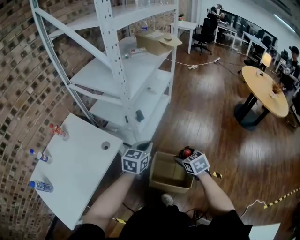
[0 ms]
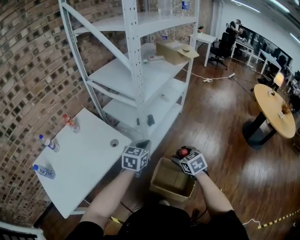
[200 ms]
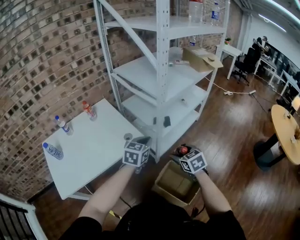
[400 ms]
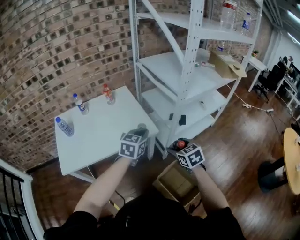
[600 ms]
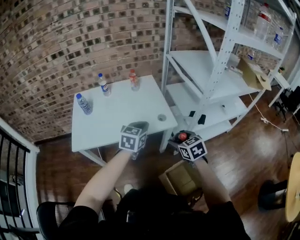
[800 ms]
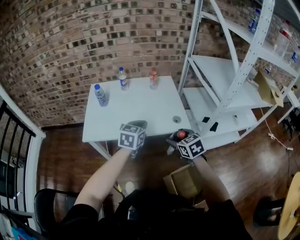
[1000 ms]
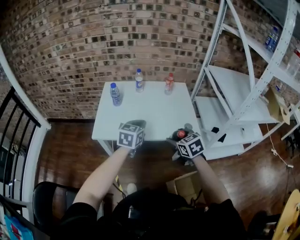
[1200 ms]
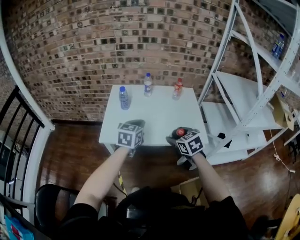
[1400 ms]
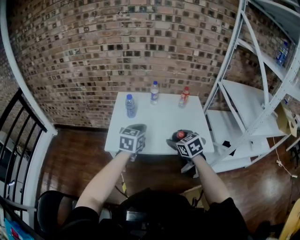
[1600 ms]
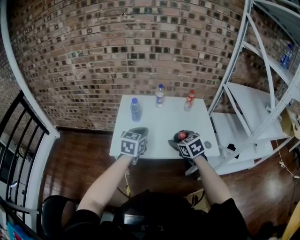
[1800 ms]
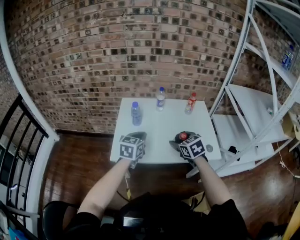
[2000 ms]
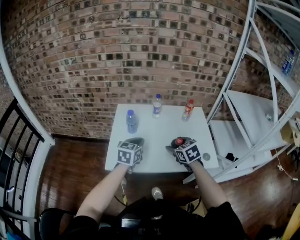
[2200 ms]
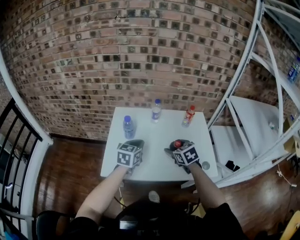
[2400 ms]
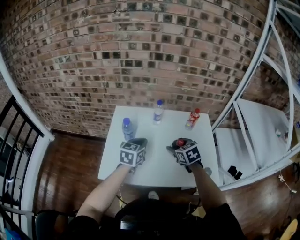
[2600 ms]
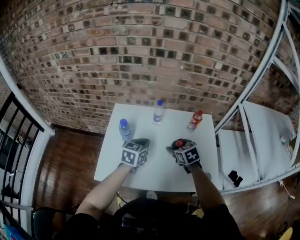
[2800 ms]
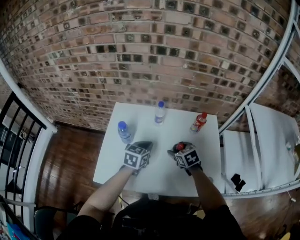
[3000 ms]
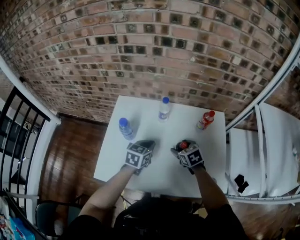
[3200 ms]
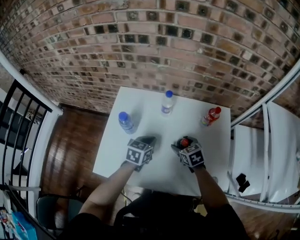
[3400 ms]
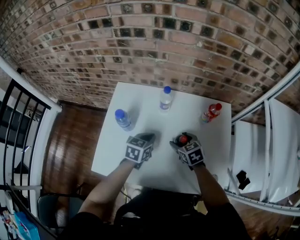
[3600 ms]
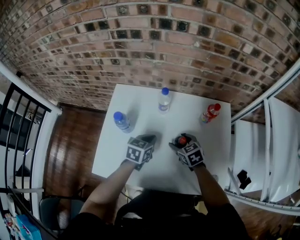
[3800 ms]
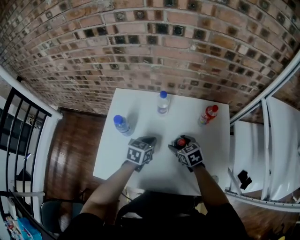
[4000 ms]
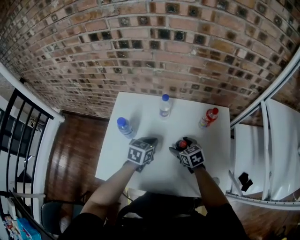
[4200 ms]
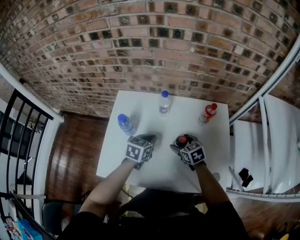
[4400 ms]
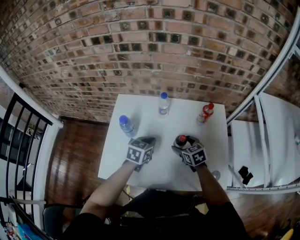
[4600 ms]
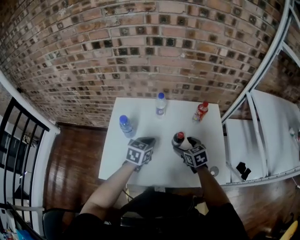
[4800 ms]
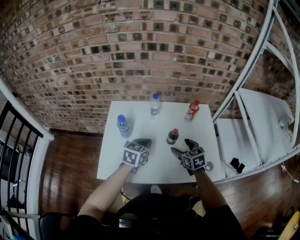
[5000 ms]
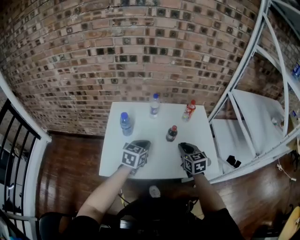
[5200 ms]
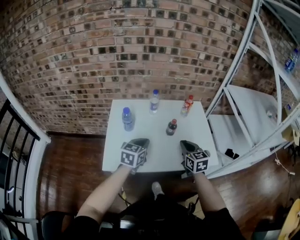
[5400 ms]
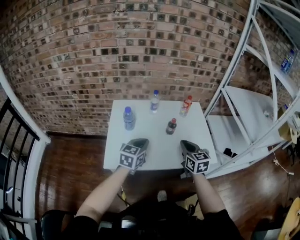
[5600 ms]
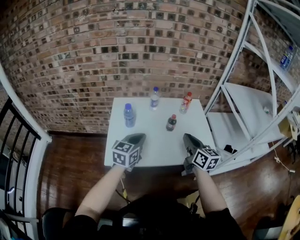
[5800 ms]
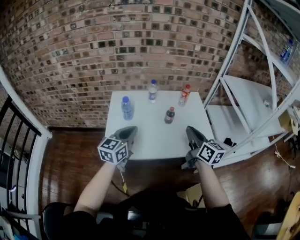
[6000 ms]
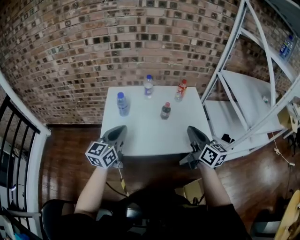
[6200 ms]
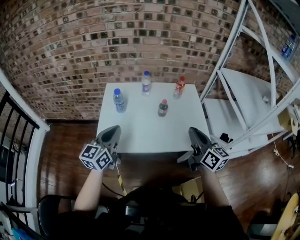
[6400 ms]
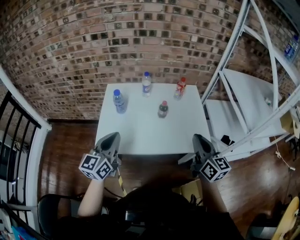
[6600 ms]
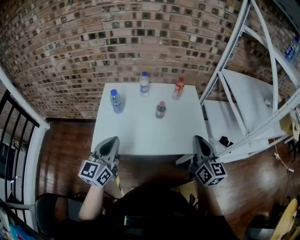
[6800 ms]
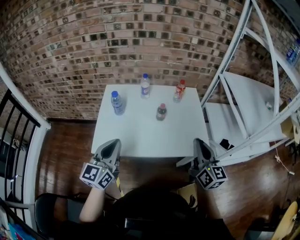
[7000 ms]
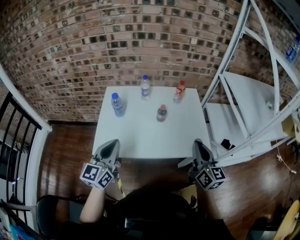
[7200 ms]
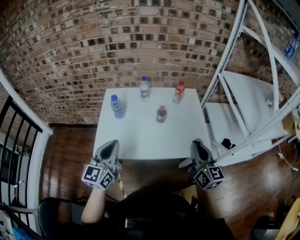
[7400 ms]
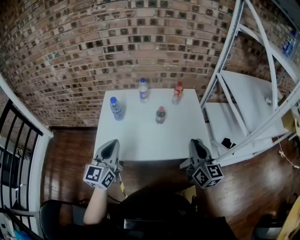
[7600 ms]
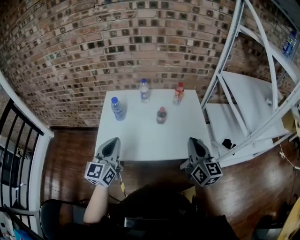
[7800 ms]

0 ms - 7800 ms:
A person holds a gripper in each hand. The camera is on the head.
0 ms - 1600 ms: Both grippers are carried approximately 60 cm. The left gripper turns by about 70 degrees; the right gripper turns by approximately 70 degrees.
1600 ms - 3200 ms: Both grippers travel together forward and downward, about 30 cm.
3200 ms - 4600 ms: The grippers make only small movements.
4600 ms - 6200 ms: The left gripper moves backward, upward and to the left, about 30 cm, and points its fingers some 30 degrees further upward; the right gripper moves backward and upward, about 35 cm, tilts its fingers approximately 40 degrees upward, and closes its fingers.
6200 ms - 7800 ms: The right gripper ends up approximately 5 cm from where it was.

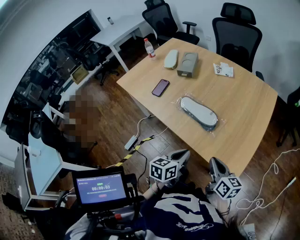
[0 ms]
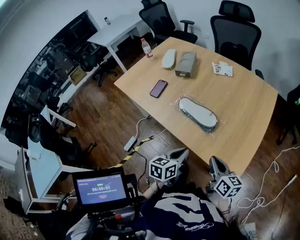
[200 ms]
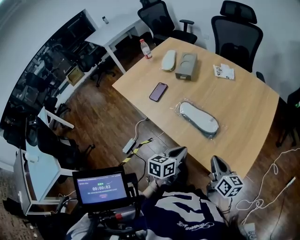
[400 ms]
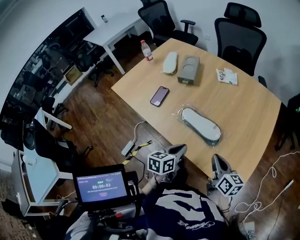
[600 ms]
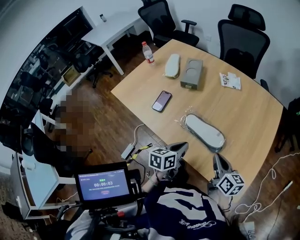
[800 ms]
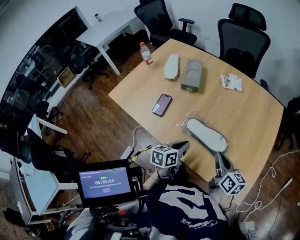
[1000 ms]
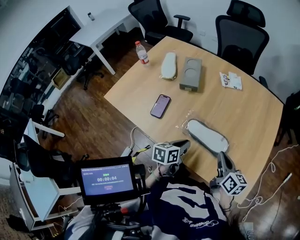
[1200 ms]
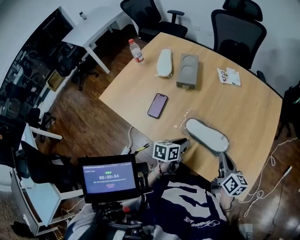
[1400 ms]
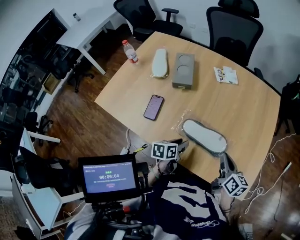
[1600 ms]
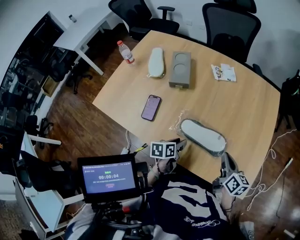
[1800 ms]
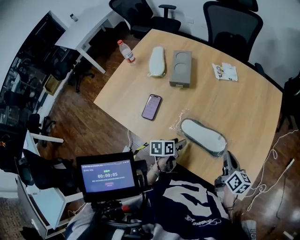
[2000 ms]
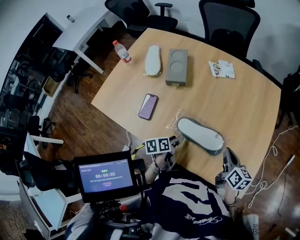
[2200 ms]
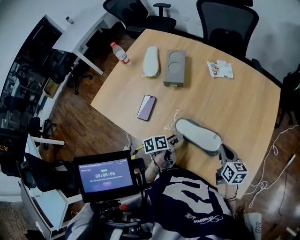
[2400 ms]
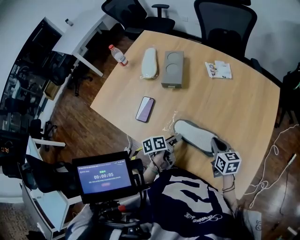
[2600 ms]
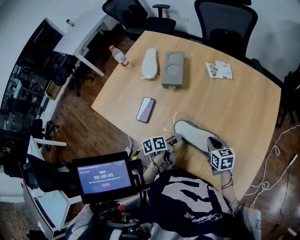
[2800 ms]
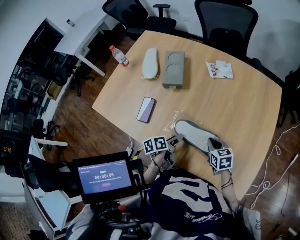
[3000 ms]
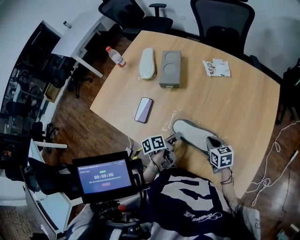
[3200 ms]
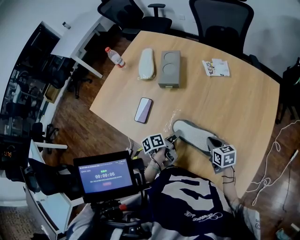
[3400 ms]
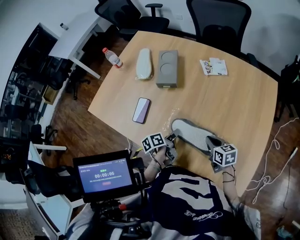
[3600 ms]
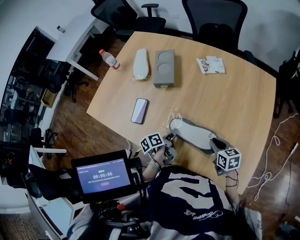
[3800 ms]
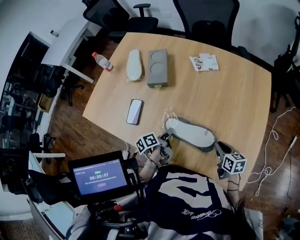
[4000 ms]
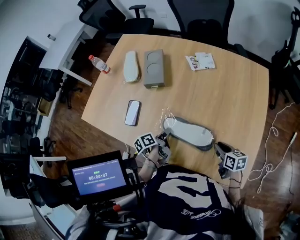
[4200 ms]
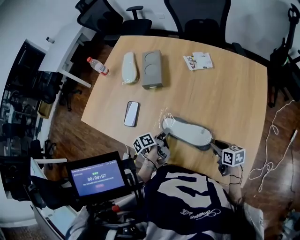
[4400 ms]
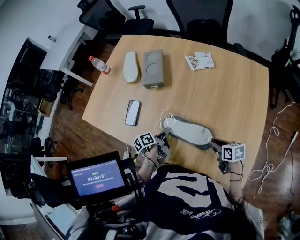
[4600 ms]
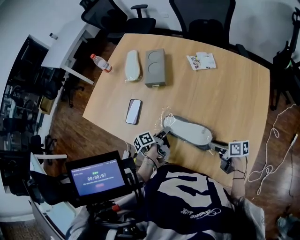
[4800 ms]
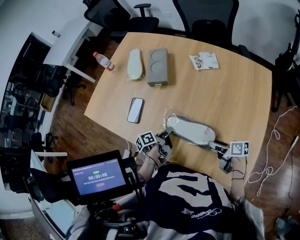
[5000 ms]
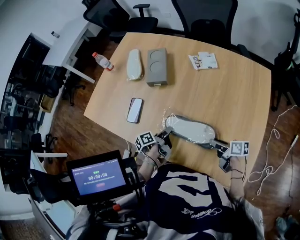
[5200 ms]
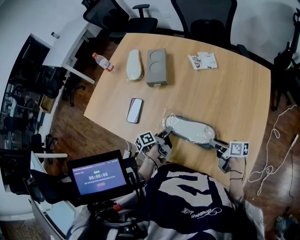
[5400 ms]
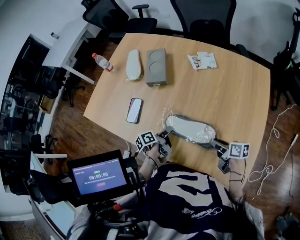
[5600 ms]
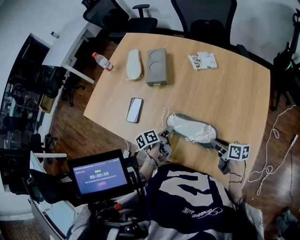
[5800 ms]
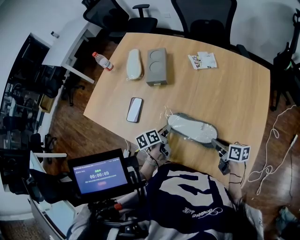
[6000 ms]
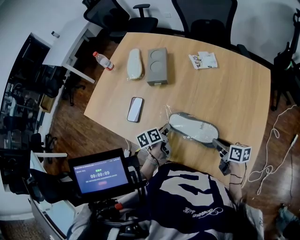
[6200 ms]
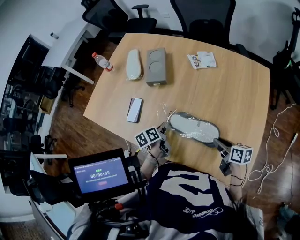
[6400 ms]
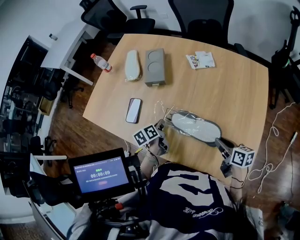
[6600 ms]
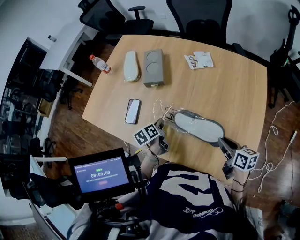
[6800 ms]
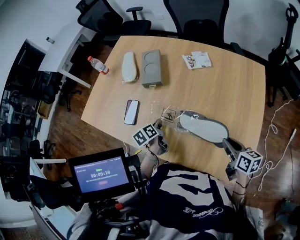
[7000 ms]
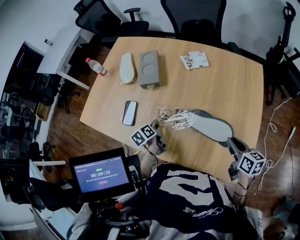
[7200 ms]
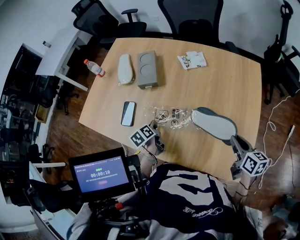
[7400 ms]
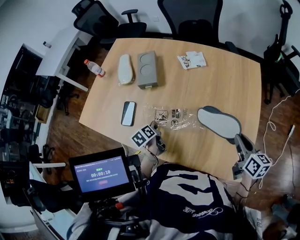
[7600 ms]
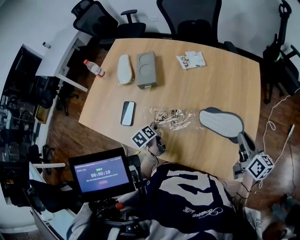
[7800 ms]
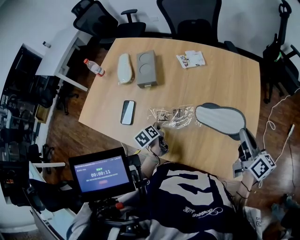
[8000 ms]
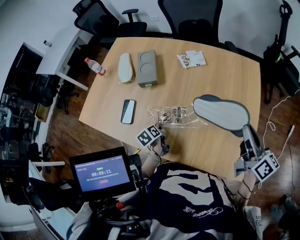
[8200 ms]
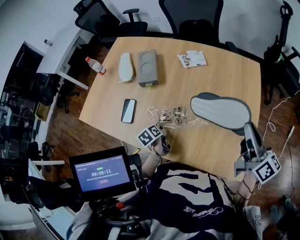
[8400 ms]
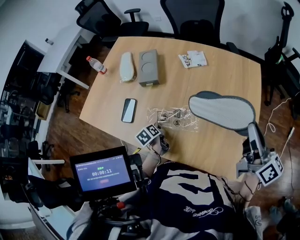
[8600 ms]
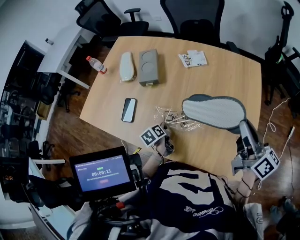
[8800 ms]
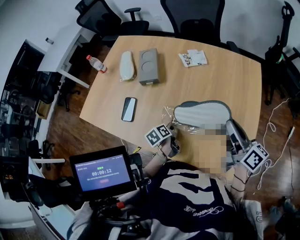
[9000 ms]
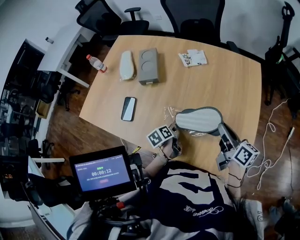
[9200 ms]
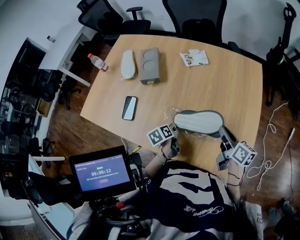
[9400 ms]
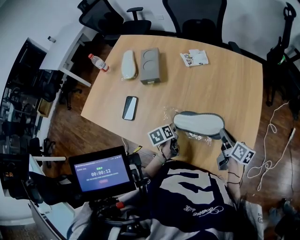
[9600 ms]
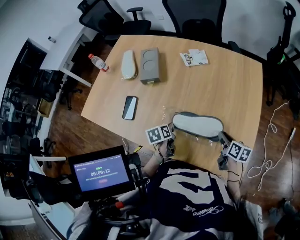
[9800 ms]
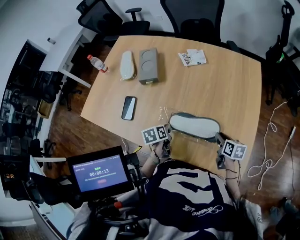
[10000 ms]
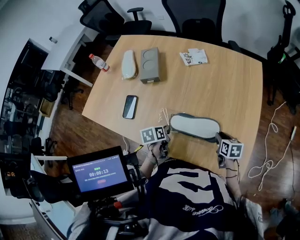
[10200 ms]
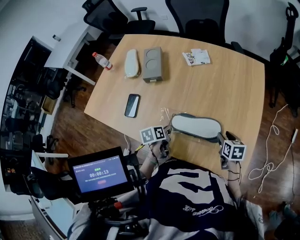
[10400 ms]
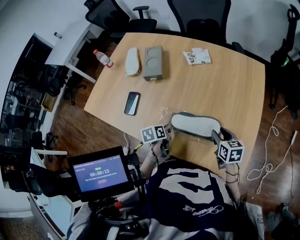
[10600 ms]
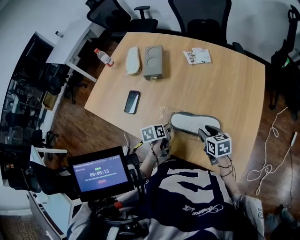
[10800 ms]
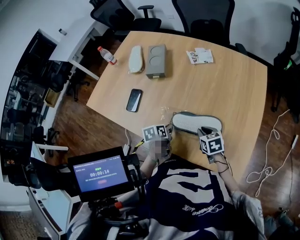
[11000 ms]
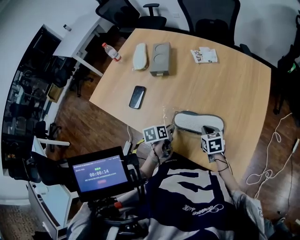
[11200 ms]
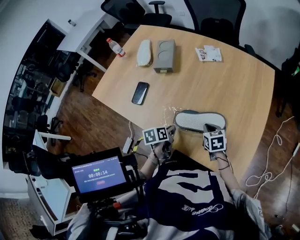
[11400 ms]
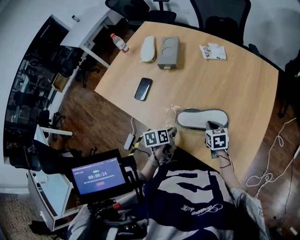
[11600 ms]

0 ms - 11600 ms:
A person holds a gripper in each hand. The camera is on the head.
0 ms - 1400 ms: The left gripper travels forward and to the left by some 25 cm; the right gripper heads forward, covering some 20 cm.
1400 ms - 2800 ms: The left gripper changes place by approximately 5 cm, rotates approximately 30 degrees, and opens; the right gripper shifts roughly 15 cm downward and forward, and changes its angle by some 30 degrees.
2800 ms - 4400 ms: The left gripper closes up, while the right gripper shifts some 10 cm to the right and backward, and opens up.
4400 ms - 5800 ms: The right gripper opens, then closes once more.
5800 ms - 7200 ms: The right gripper is displaced upward and to the right by about 15 cm, and rotates roughly 30 degrees; the left gripper changes place by roughly 5 cm, swivels roughly 20 degrees, and closes its fingers.
7200 ms - 8800 ms: The right gripper shifts roughly 20 cm upward, and tips its fingers upward by about 30 degrees, while the left gripper ends up about 5 cm from where it was.
8800 ms - 10200 ms: The right gripper is displaced downward by some 30 cm, and tips its fingers downward by approximately 50 degrees; the left gripper turns by roughly 20 degrees.
10200 ms - 11600 ms: The right gripper goes roughly 10 cm to the left, changes its angle by approximately 20 degrees, and closes its fingers; the left gripper heads backward, covering about 10 cm.

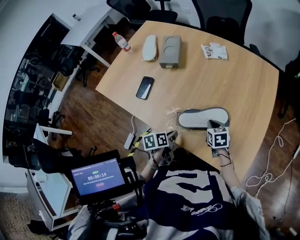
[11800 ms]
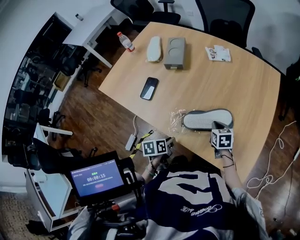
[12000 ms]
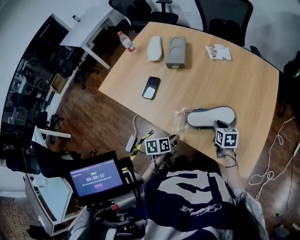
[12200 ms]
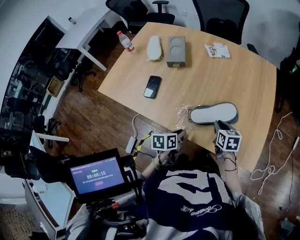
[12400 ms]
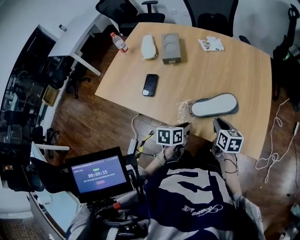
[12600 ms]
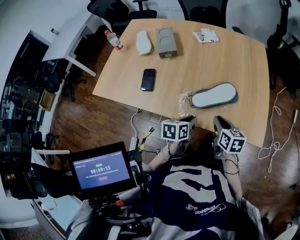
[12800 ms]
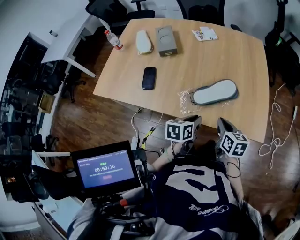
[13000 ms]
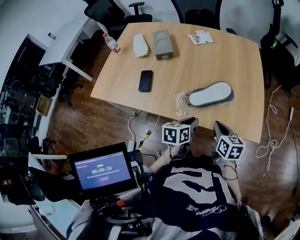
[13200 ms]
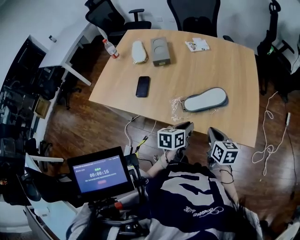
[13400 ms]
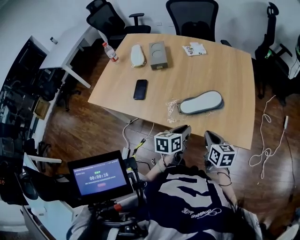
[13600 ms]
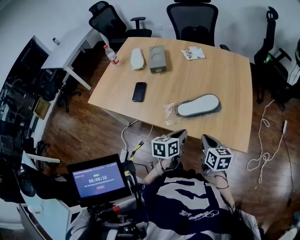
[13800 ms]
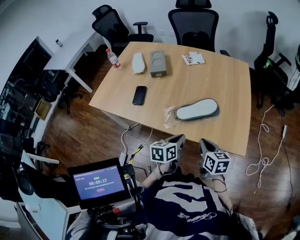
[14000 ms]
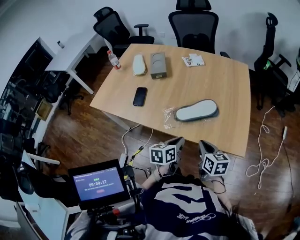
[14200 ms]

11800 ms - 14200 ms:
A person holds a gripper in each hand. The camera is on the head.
11800 ms - 13000 ms: The right gripper moves backward and upward, about 20 cm, and changes its angle by approximately 30 degrees; the left gripper shifts about 5 cm upward, and rotates approximately 40 degrees.
13000 ms - 14200 ms: Both grippers travel together backward, about 5 cm.

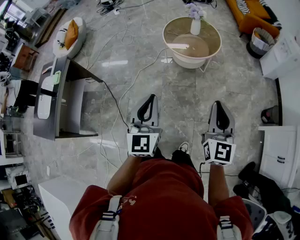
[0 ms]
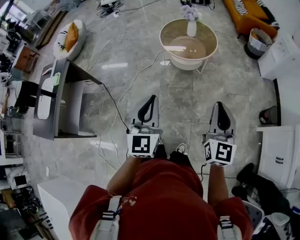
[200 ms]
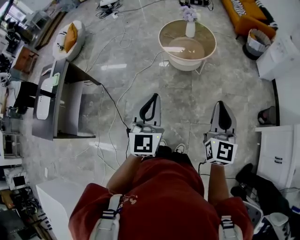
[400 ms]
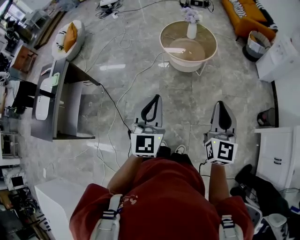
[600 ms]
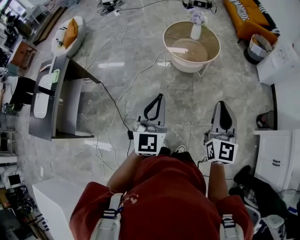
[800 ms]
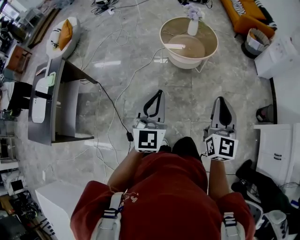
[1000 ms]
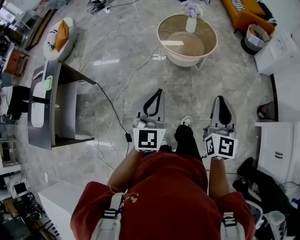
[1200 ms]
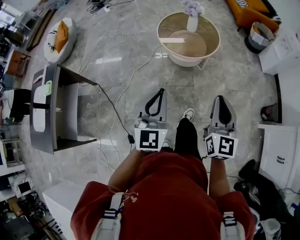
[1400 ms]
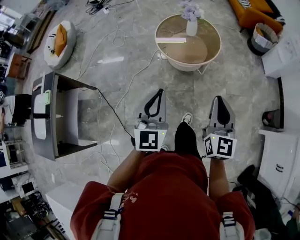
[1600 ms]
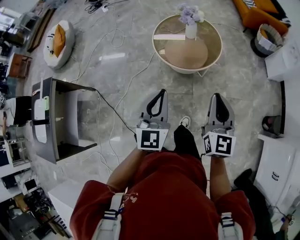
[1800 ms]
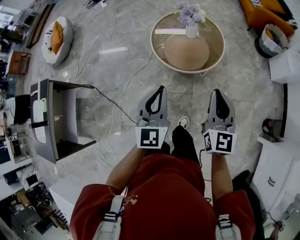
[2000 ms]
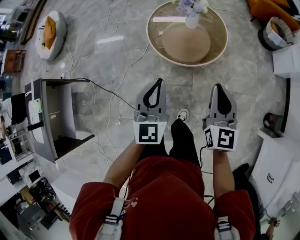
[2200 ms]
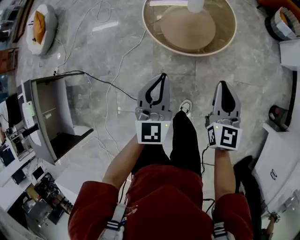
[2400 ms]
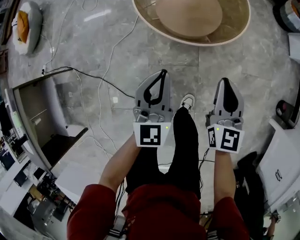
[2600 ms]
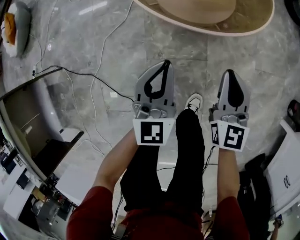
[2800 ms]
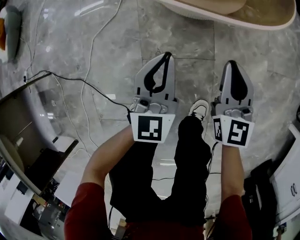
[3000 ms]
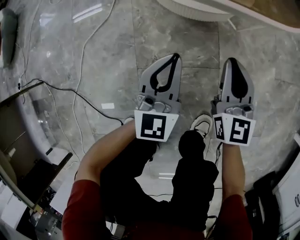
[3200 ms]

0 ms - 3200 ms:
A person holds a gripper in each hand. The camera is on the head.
0 ms - 1600 ms: Both grippers travel together forward, approximately 20 cm.
1600 ms - 3200 ms: The two grippers go about 70 cm downward.
